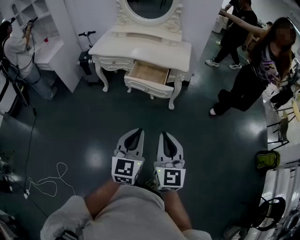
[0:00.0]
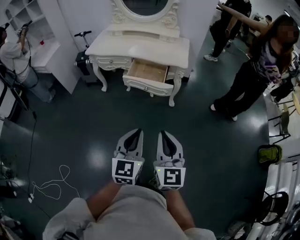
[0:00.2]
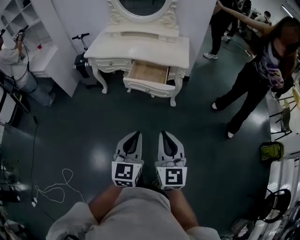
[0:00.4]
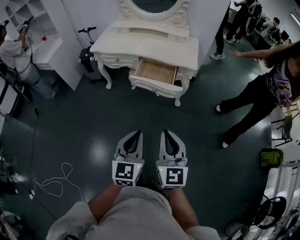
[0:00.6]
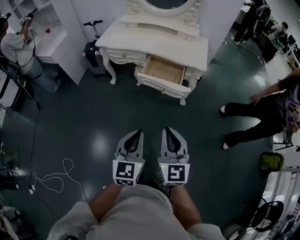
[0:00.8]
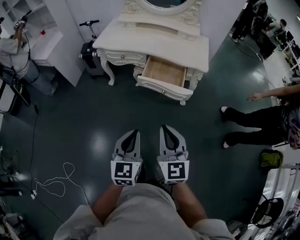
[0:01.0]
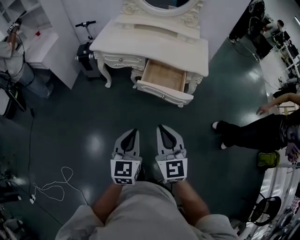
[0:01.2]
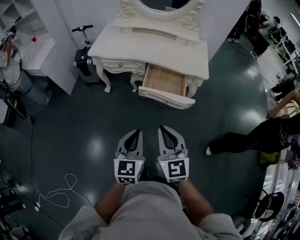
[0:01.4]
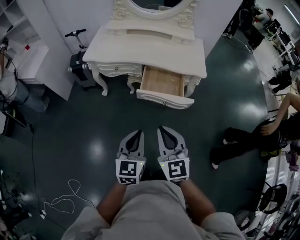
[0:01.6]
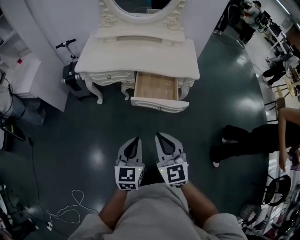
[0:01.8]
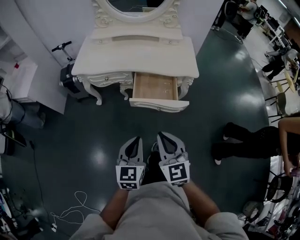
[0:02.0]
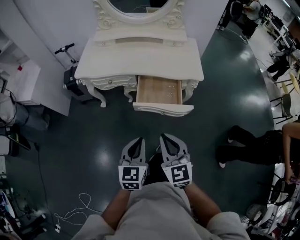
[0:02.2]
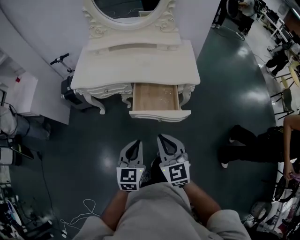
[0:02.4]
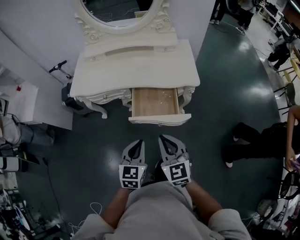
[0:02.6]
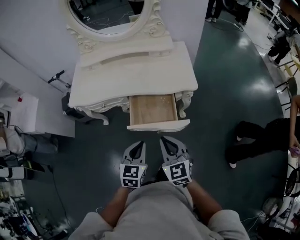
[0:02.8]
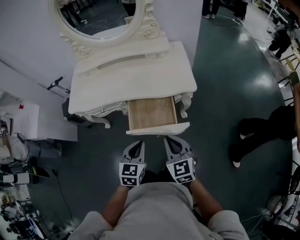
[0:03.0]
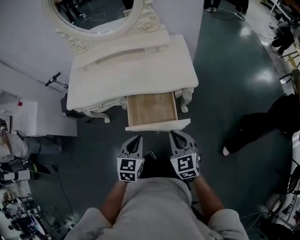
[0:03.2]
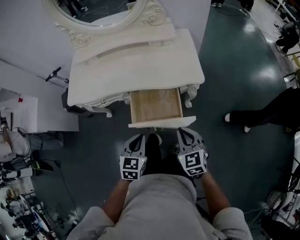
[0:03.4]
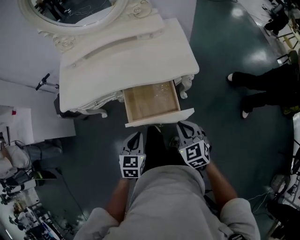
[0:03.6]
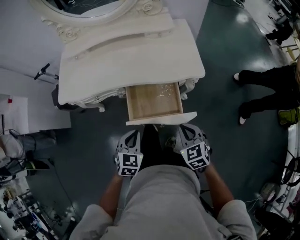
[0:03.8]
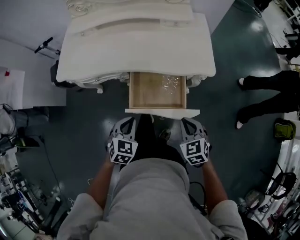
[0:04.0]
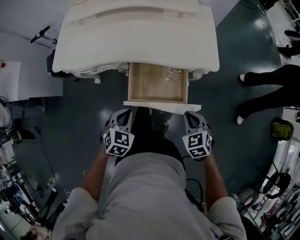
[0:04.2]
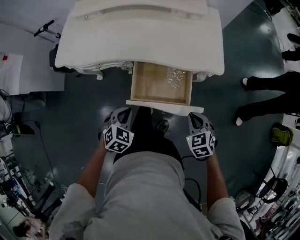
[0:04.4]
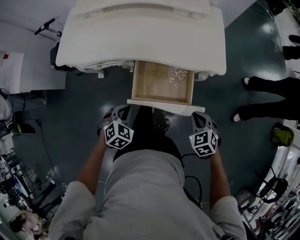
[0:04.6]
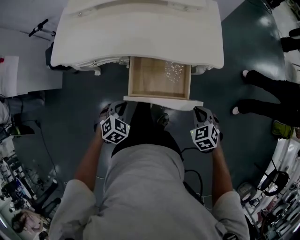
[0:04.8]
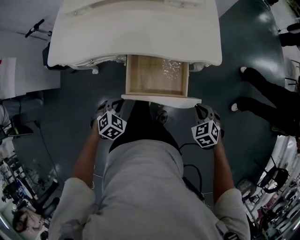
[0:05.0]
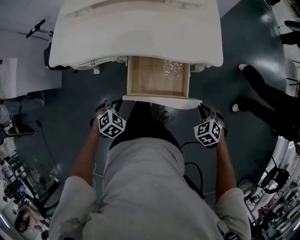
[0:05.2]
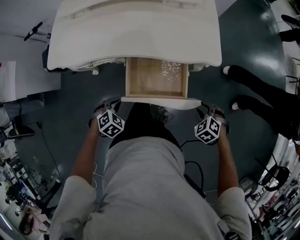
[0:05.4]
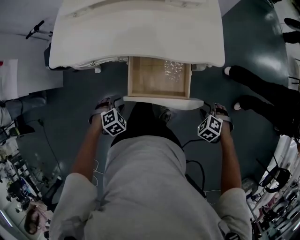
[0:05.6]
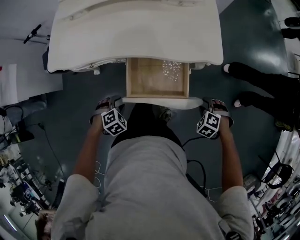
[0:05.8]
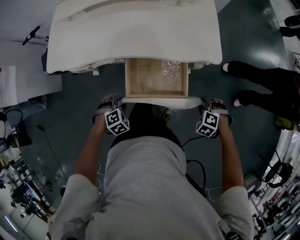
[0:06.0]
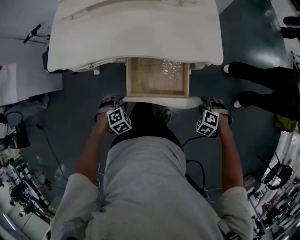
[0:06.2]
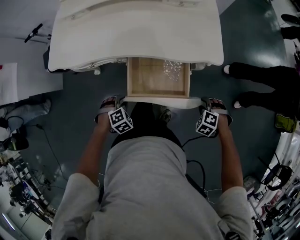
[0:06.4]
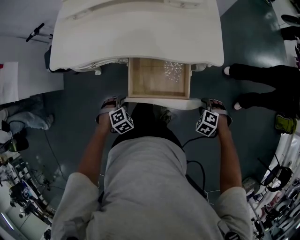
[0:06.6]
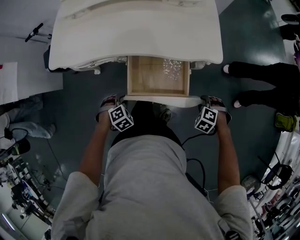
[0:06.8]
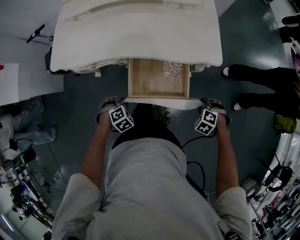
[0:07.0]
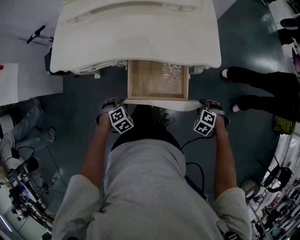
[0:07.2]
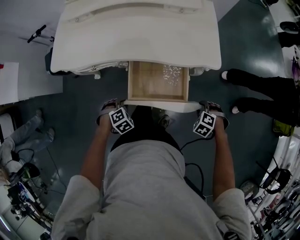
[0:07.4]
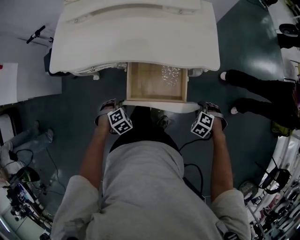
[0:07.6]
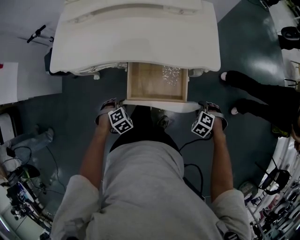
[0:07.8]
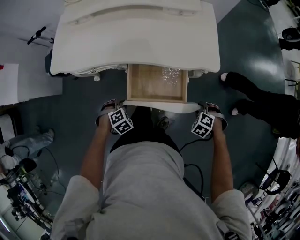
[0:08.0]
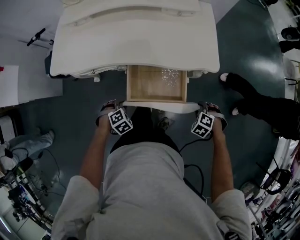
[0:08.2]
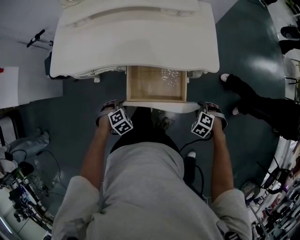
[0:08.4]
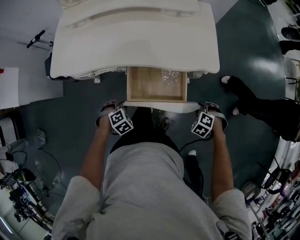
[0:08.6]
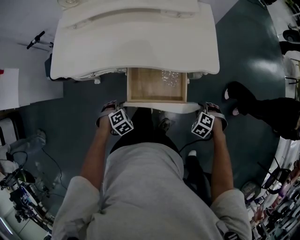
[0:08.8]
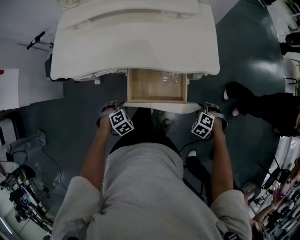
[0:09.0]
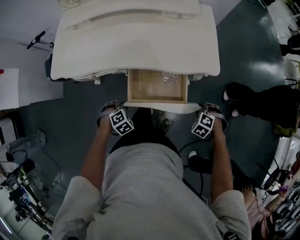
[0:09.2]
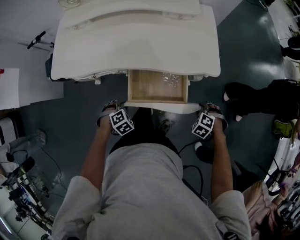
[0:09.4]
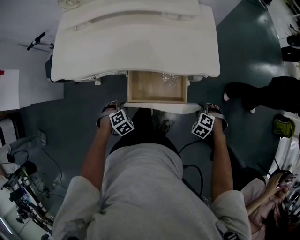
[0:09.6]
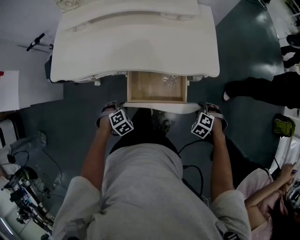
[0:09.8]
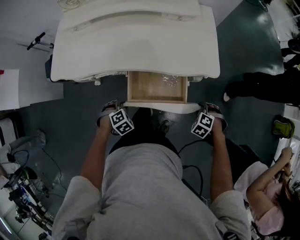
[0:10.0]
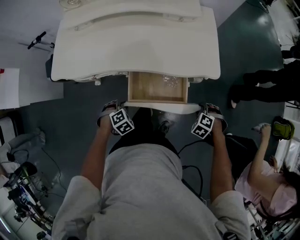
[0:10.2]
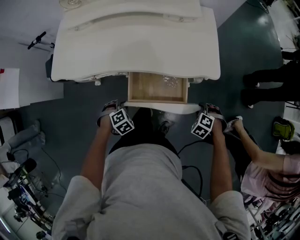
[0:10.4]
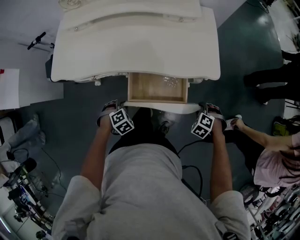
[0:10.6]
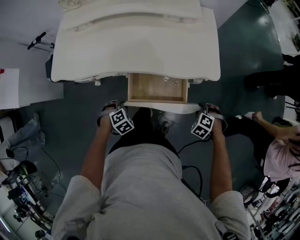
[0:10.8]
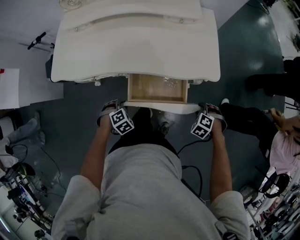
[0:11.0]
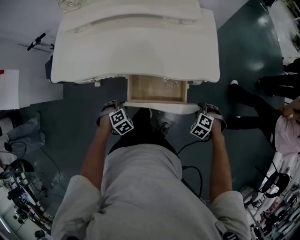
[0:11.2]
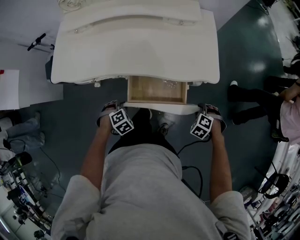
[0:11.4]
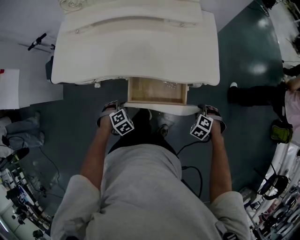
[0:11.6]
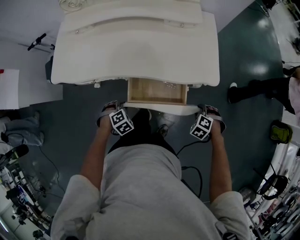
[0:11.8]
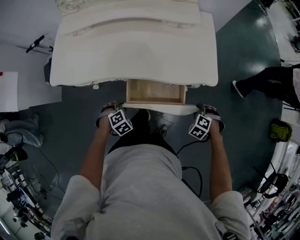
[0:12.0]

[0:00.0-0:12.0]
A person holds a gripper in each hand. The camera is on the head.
0:00.0 to 0:01.6: Both grippers move forward and to the left, roughly 30 cm.
0:01.6 to 0:03.0: The left gripper shifts roughly 25 cm forward and to the right, and turns by roughly 20 degrees. Meanwhile the right gripper is displaced forward, to the right and downward by approximately 25 cm.
0:03.0 to 0:04.4: The left gripper is displaced downward, to the left and forward by roughly 20 cm, and rotates approximately 30 degrees. Meanwhile the right gripper is displaced downward by roughly 15 cm, and tilts its fingers about 30 degrees downward.
0:04.4 to 0:06.0: Both grippers move downward, about 10 cm. The left gripper rotates roughly 30 degrees, and opens up. Meanwhile the right gripper changes its angle by about 40 degrees, and opens.
0:06.0 to 0:10.4: The grippers move only a little.
0:10.4 to 0:12.0: The grippers move only a little.

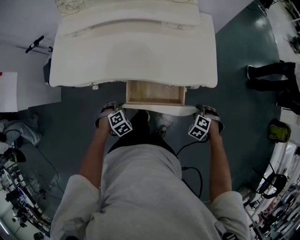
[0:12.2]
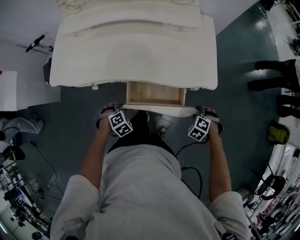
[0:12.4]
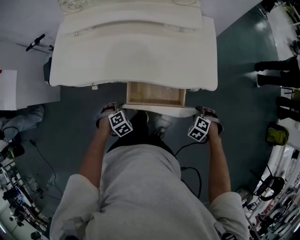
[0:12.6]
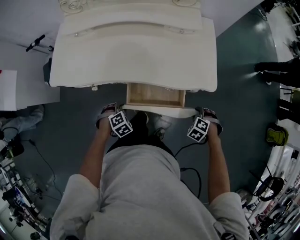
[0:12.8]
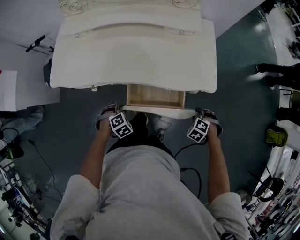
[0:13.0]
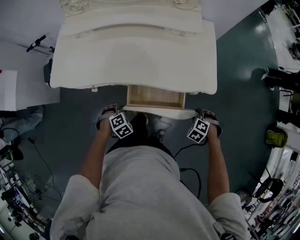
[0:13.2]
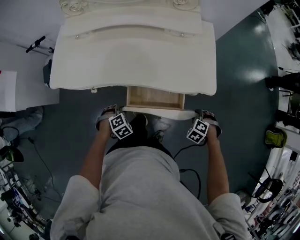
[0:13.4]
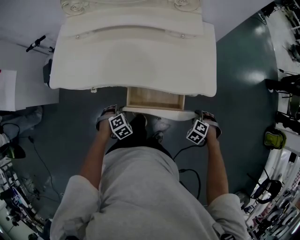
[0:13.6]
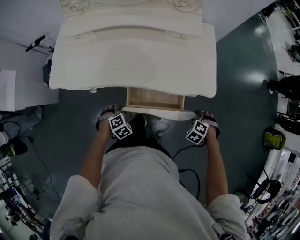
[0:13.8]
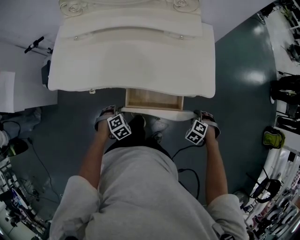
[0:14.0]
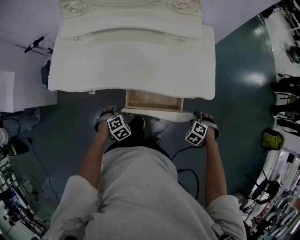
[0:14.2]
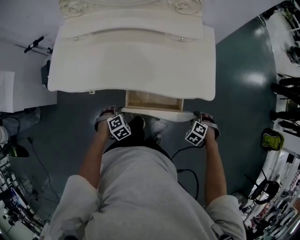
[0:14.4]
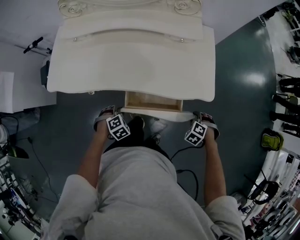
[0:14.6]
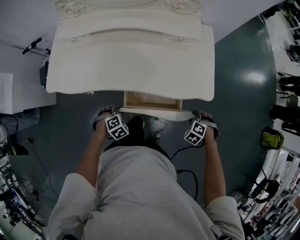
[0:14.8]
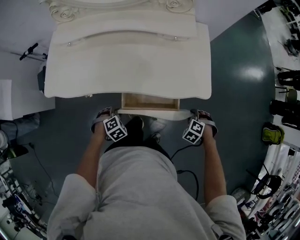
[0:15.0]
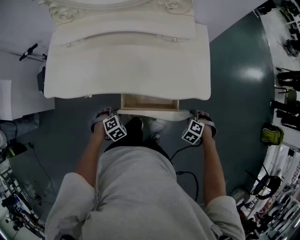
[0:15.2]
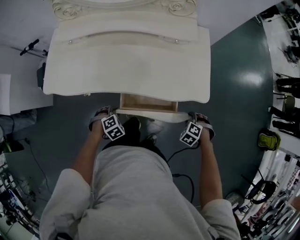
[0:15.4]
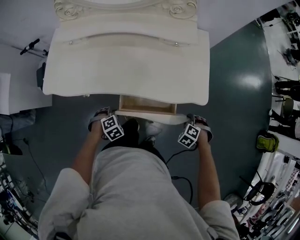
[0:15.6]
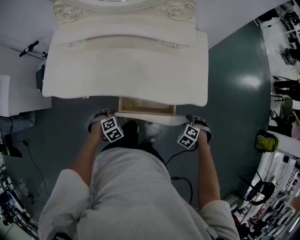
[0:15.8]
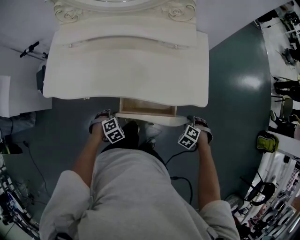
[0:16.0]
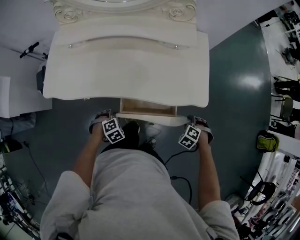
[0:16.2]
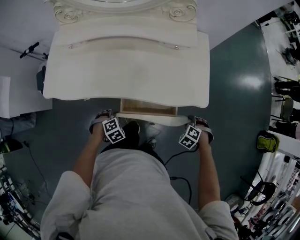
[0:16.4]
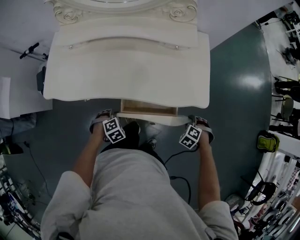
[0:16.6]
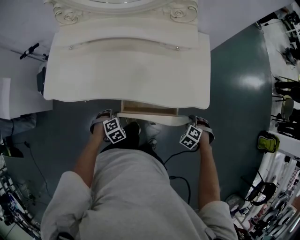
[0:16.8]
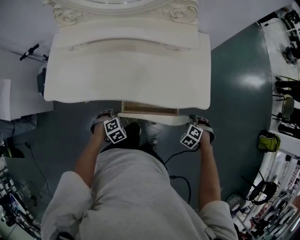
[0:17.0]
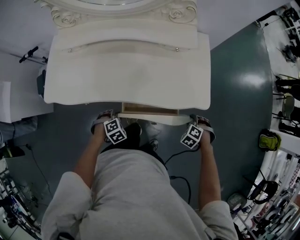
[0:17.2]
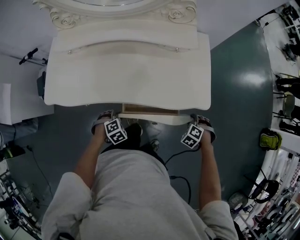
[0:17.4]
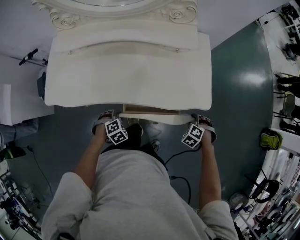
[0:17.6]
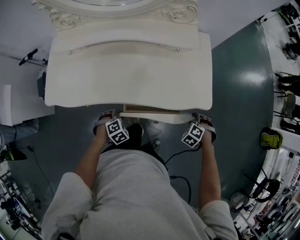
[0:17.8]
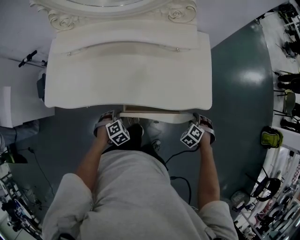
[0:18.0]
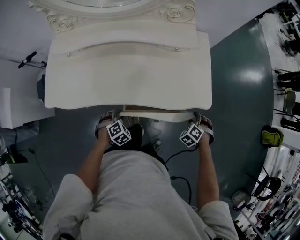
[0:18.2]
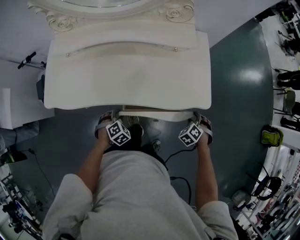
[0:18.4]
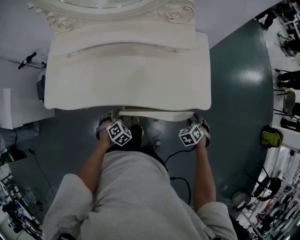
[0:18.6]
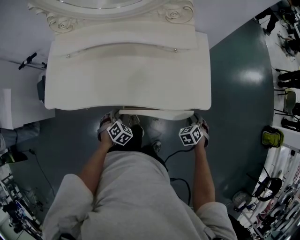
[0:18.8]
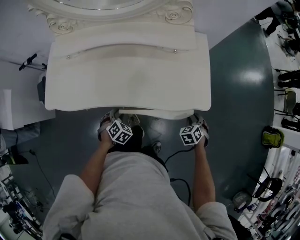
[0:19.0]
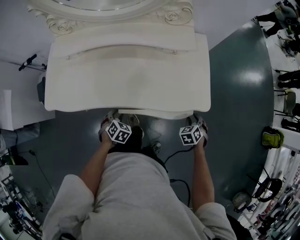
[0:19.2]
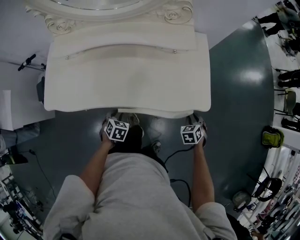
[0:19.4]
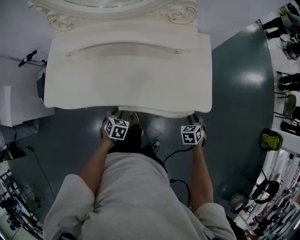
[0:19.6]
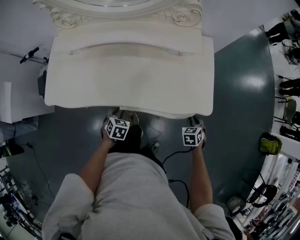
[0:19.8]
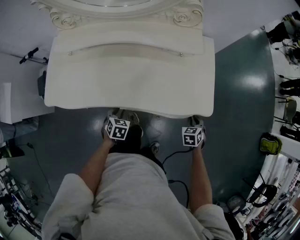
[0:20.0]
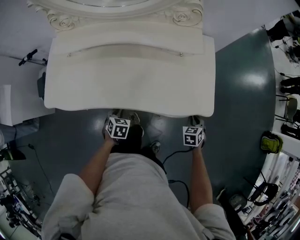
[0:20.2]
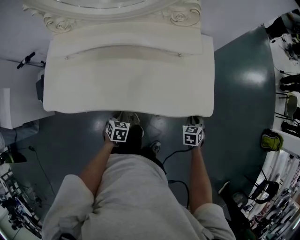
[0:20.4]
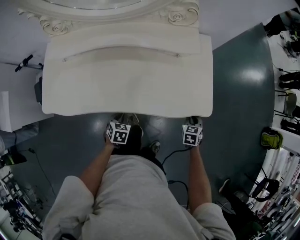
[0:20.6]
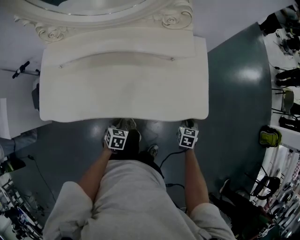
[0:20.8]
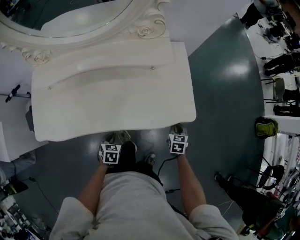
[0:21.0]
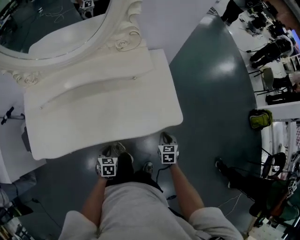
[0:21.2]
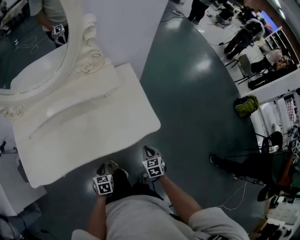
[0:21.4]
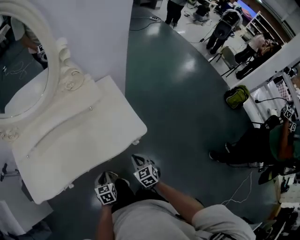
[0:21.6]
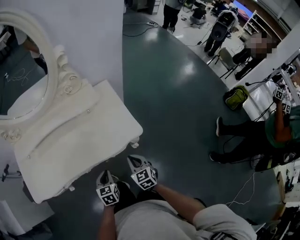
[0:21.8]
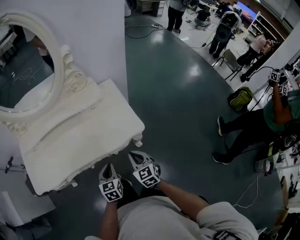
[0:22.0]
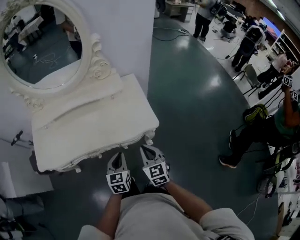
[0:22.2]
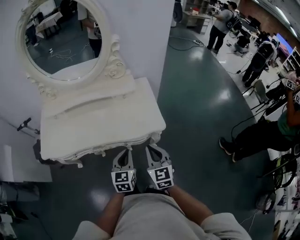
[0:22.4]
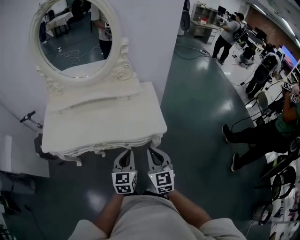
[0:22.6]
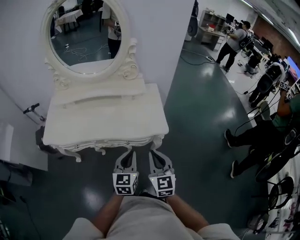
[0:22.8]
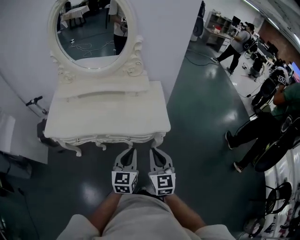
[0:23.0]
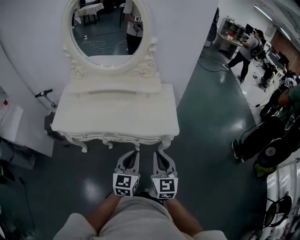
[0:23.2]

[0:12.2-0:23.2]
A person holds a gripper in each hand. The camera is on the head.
0:12.2 to 0:17.0: The grippers stay close to where they were, moving slightly.
0:17.0 to 0:18.4: There are only small adjustments of the grippers.
0:18.4 to 0:20.0: The left gripper rotates some 40 degrees; the right gripper changes its angle by about 40 degrees, and closes.
0:20.0 to 0:21.6: The right gripper heads upward and backward, covering roughly 10 cm, and rotates some 30 degrees, while the left gripper moves to the right and upward, roughly 15 cm.
0:21.6 to 0:23.2: The right gripper heads upward and backward, covering some 25 cm, and tilts its fingers approximately 30 degrees upward. Meanwhile the left gripper goes about 25 cm upward, and angles its fingers upward, by approximately 40 degrees.

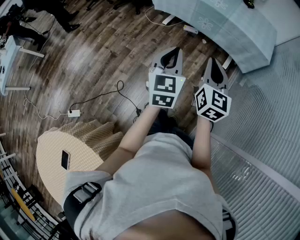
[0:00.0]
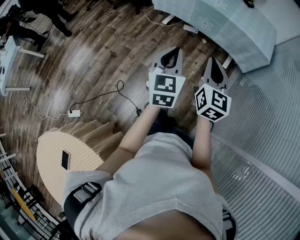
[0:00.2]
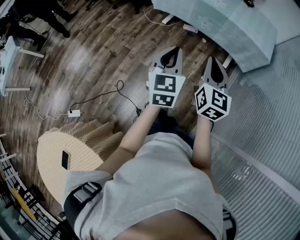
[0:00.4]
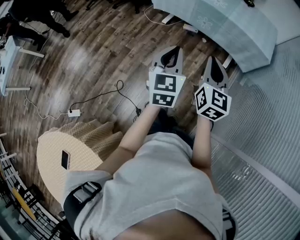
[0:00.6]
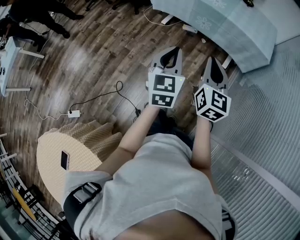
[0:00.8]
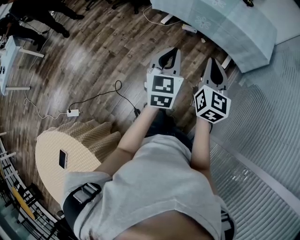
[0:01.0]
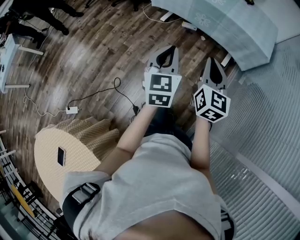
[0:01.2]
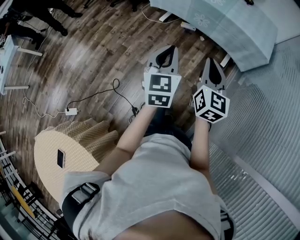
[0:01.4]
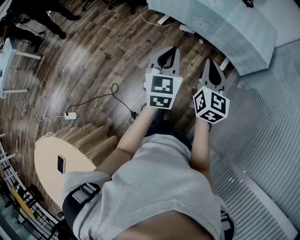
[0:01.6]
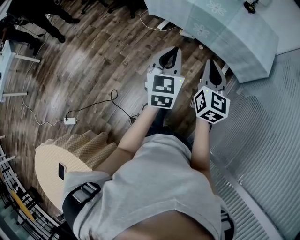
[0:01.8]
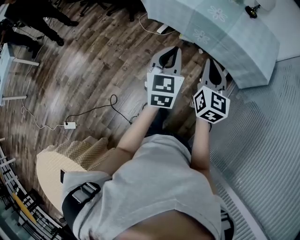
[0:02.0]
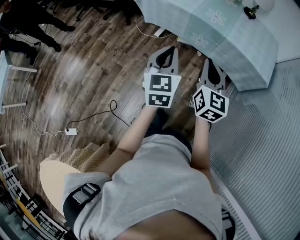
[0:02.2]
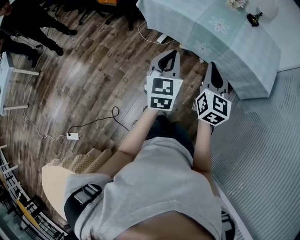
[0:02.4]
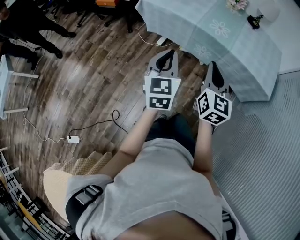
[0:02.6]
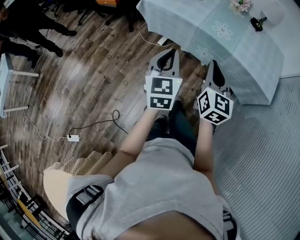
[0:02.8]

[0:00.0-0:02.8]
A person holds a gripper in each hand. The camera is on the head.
0:00.0 to 0:01.4: The grippers stay close to where they were, moving slightly.
0:01.4 to 0:02.8: The two grippers go approximately 35 cm forward.
